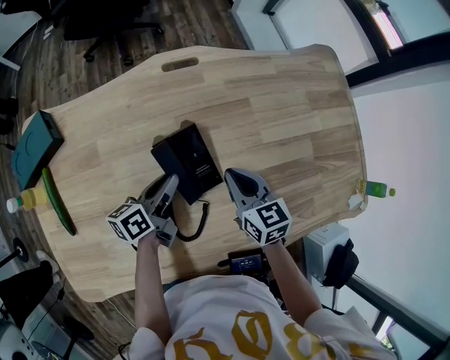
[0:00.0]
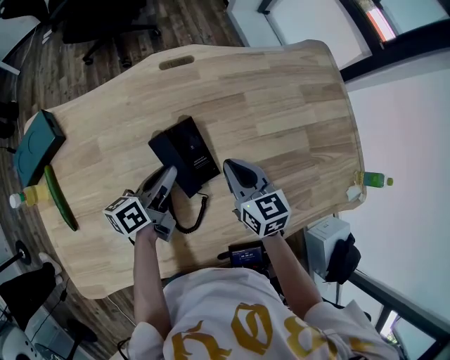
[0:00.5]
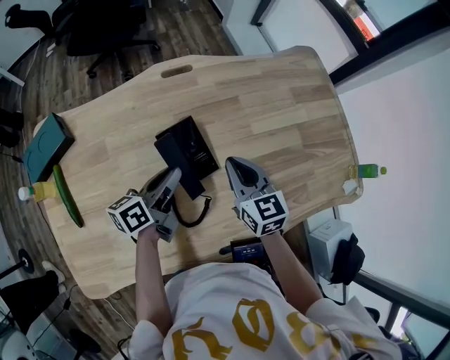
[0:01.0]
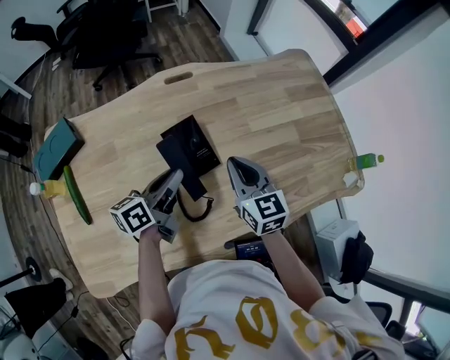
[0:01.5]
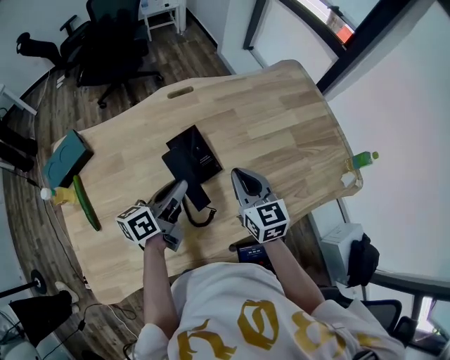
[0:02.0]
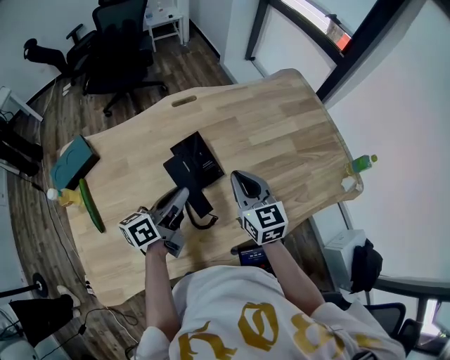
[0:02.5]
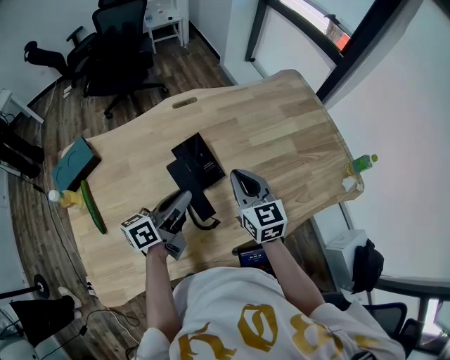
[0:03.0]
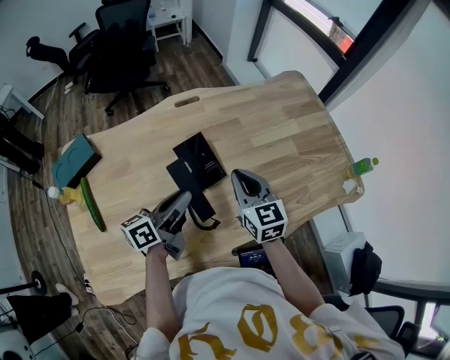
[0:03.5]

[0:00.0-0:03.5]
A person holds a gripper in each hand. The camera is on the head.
0:00.0 to 0:02.0: Both grippers travel together upward and backward, approximately 15 cm.
0:02.0 to 0:03.5: The grippers move only a little.

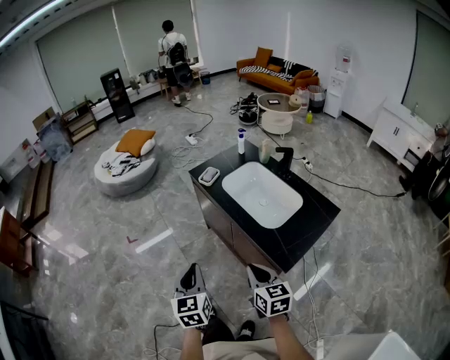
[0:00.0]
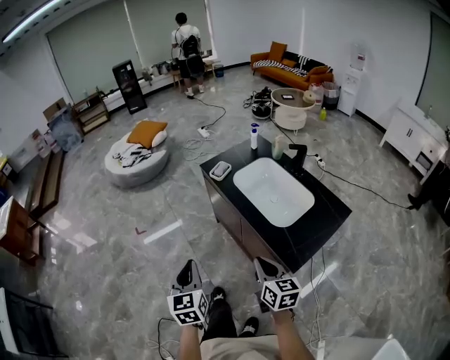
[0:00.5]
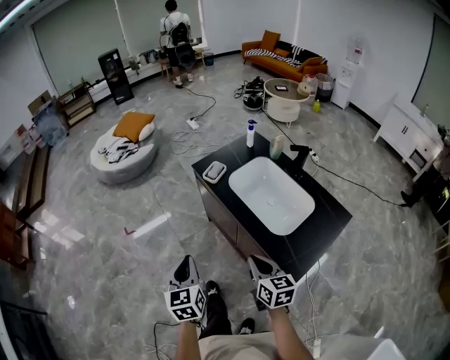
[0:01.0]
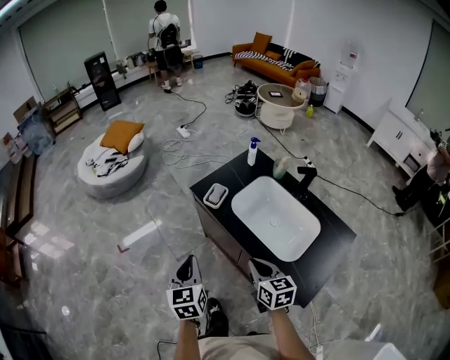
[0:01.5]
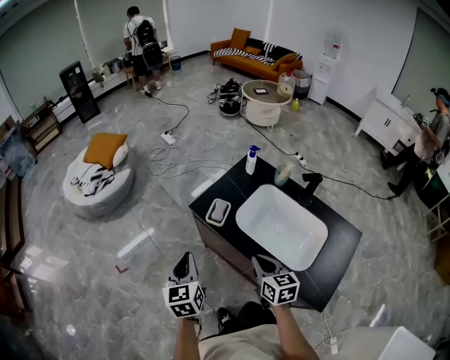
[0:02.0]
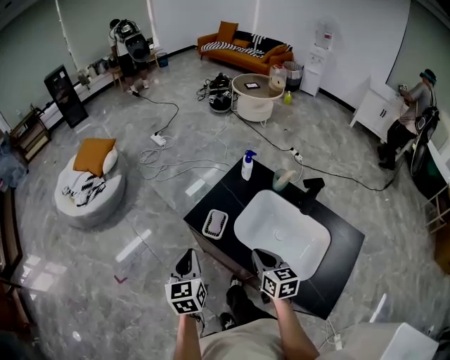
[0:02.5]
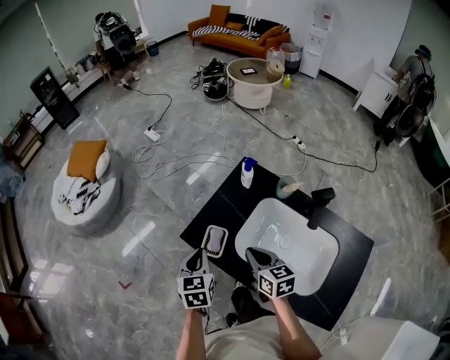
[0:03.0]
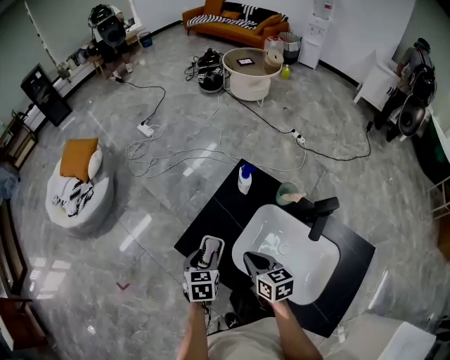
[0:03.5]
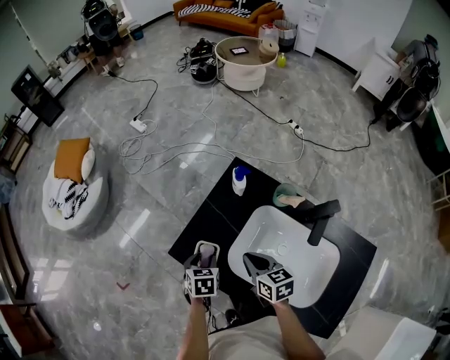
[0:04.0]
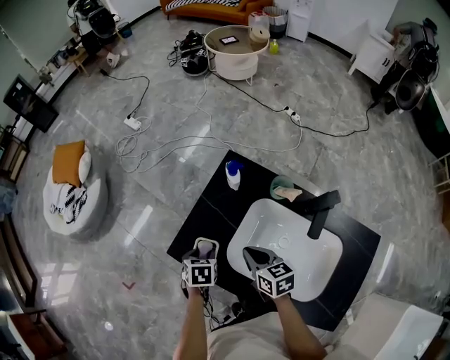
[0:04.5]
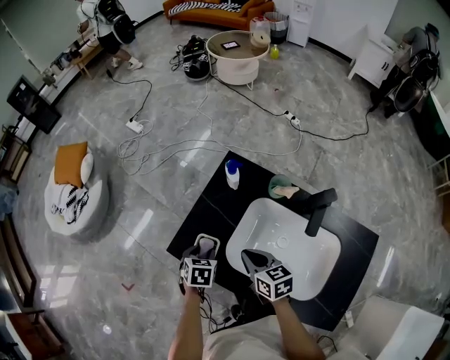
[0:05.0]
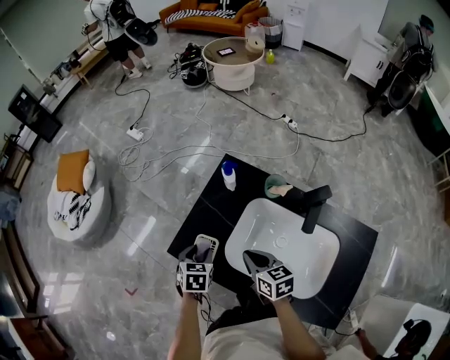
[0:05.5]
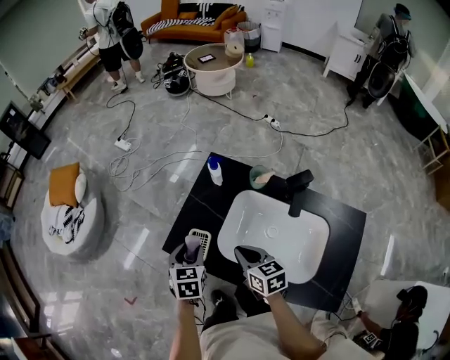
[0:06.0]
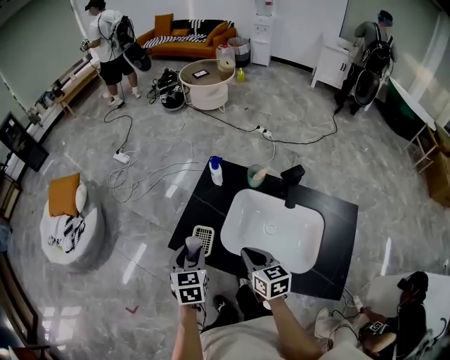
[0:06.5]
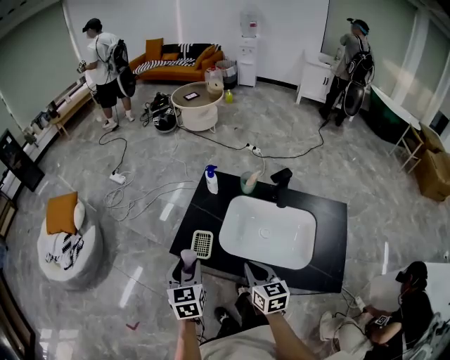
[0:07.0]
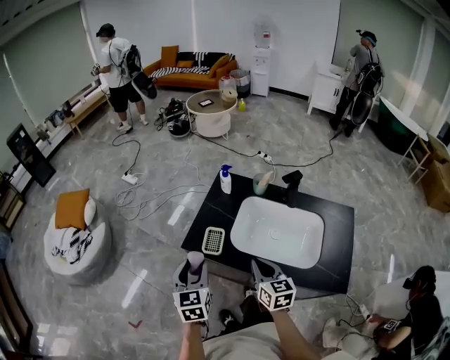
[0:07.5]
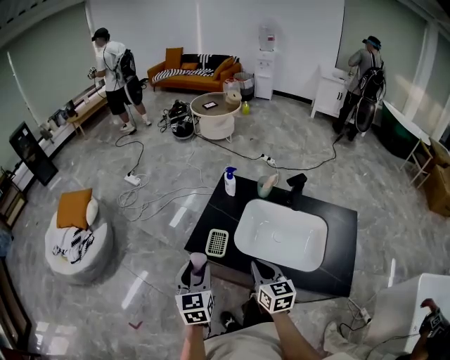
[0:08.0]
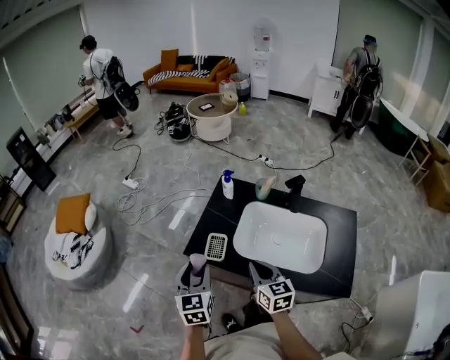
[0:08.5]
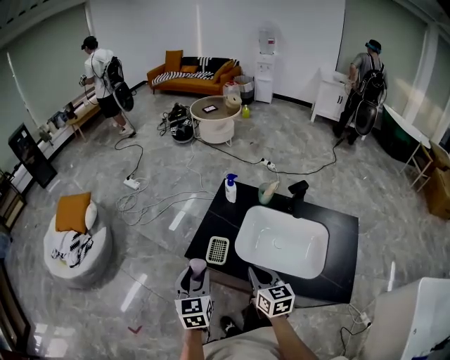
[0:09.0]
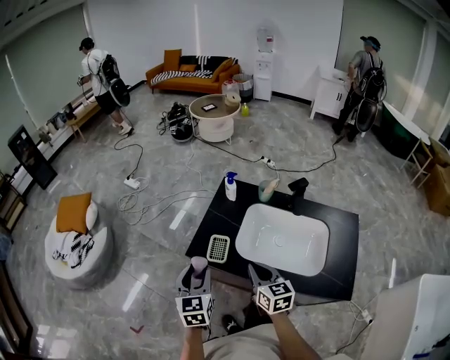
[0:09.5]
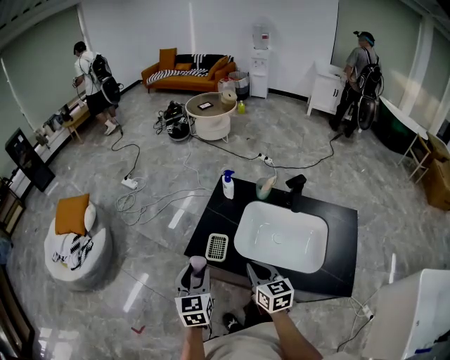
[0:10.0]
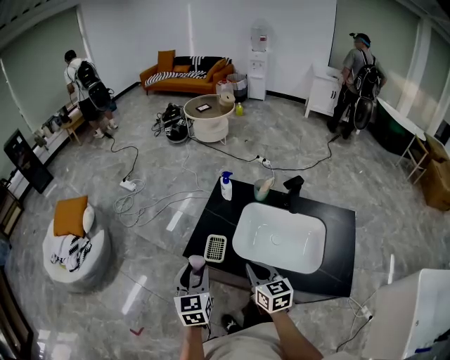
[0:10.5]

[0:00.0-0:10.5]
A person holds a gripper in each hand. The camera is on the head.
0:00.0 to 0:02.0: The grippers both shift forward by approximately 30 cm.
0:02.0 to 0:04.0: The left gripper goes approximately 30 cm downward, forward and to the right, points its fingers some 40 degrees further downward, and opens; the right gripper moves forward and downward, some 20 cm.
0:04.0 to 0:06.5: The left gripper shifts approximately 15 cm upward, and rotates about 30 degrees. The right gripper is displaced backward by approximately 5 cm.
0:06.5 to 0:08.5: The left gripper heads backward, covering some 5 cm.
0:08.5 to 0:10.5: Both grippers stay put.

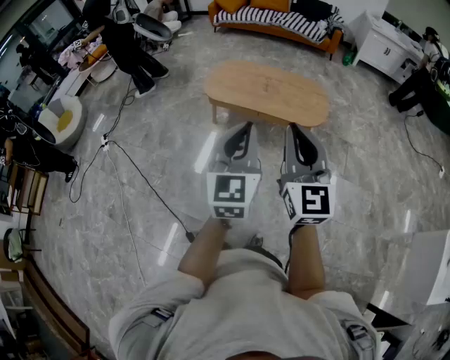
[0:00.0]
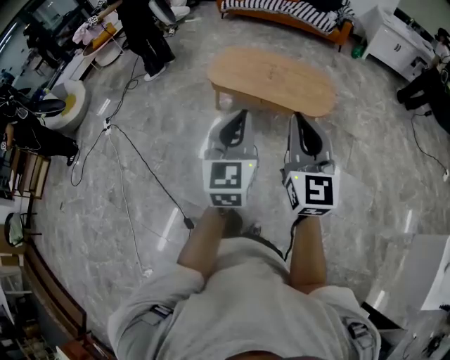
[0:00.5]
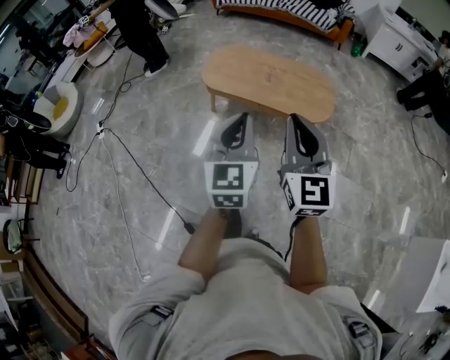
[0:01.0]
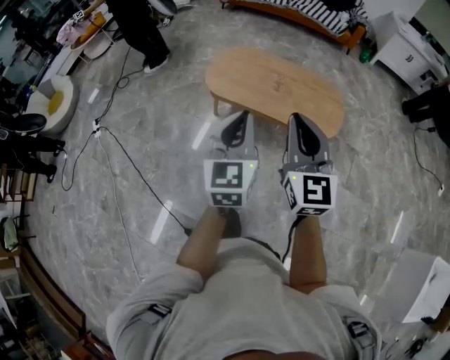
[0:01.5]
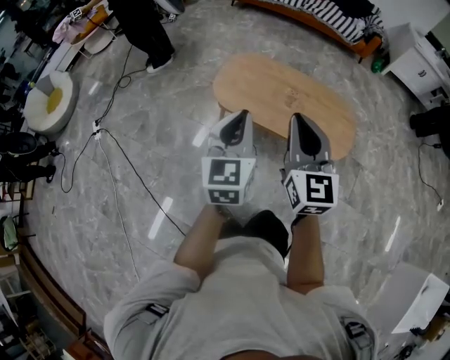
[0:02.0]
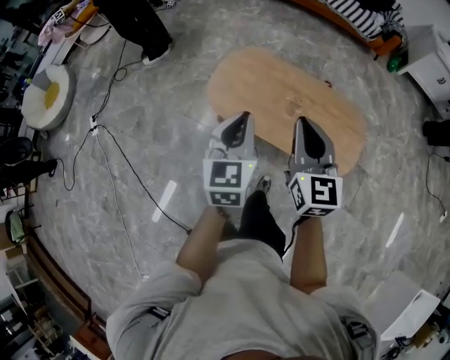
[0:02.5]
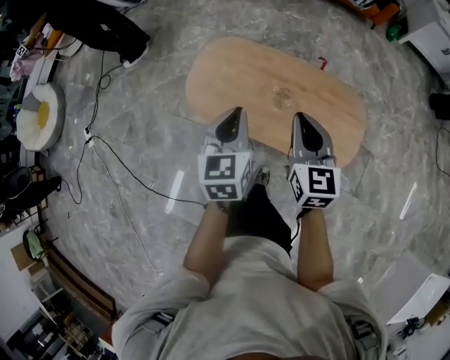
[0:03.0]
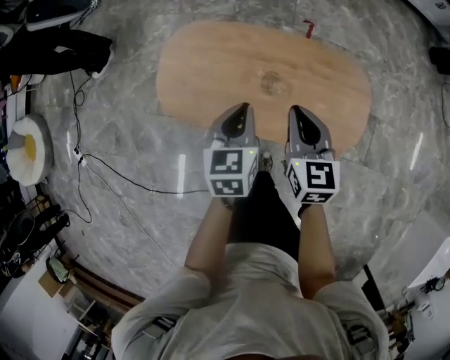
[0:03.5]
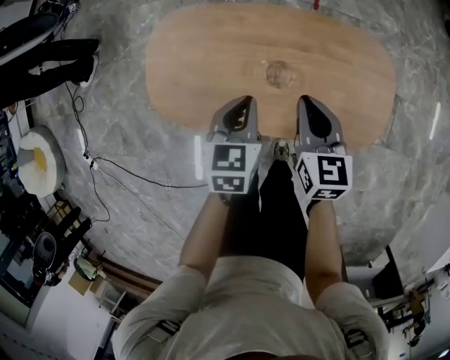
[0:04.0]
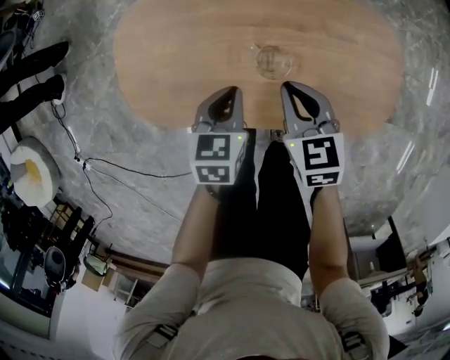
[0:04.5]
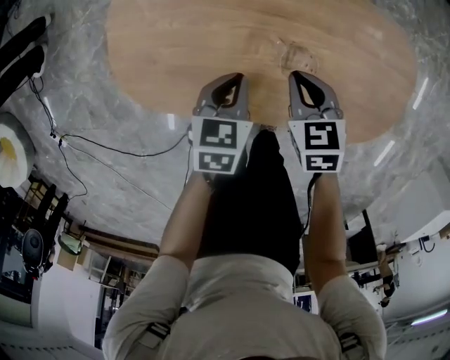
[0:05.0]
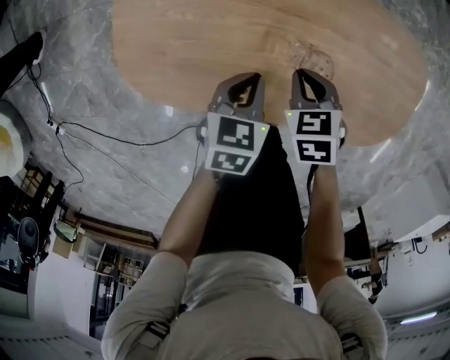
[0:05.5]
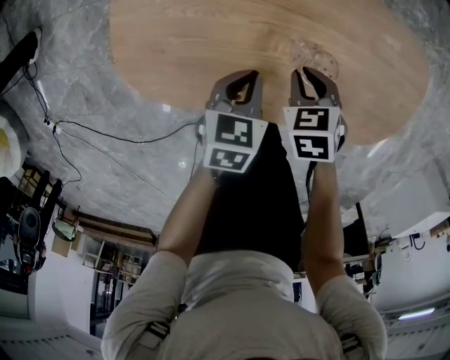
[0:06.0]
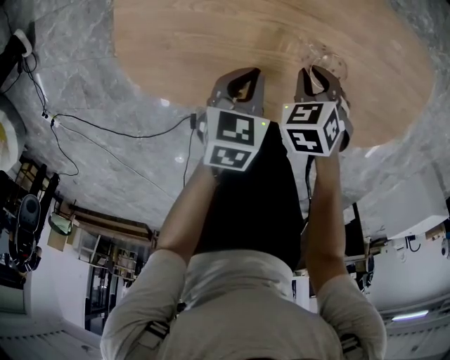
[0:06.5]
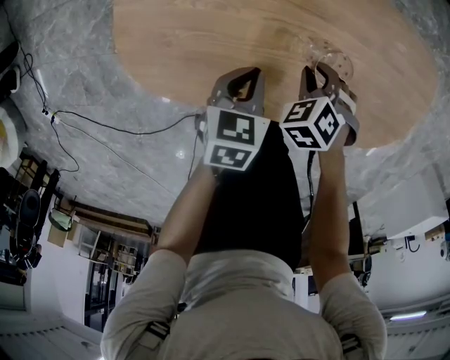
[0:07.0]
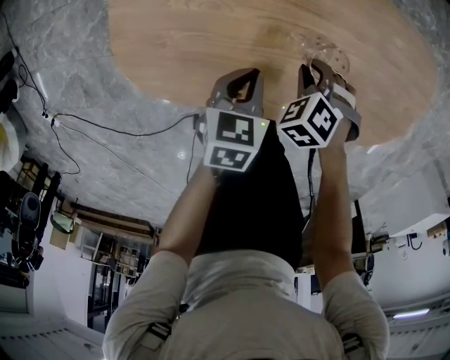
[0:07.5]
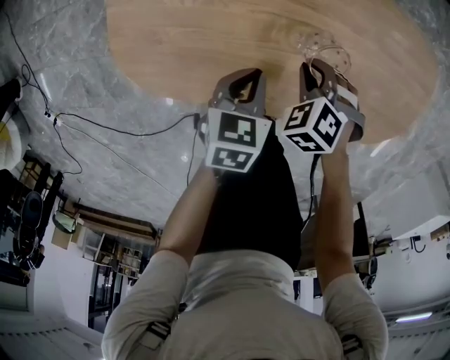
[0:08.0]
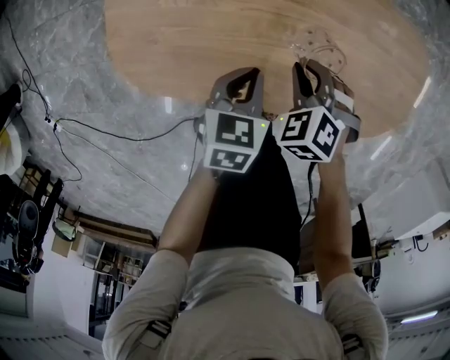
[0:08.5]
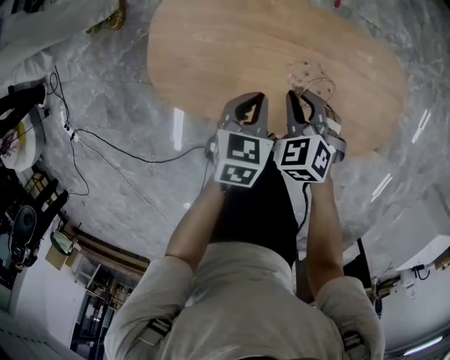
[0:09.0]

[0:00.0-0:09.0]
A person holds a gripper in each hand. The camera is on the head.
0:00.0 to 0:02.0: The two grippers go about 40 cm forward.
0:02.0 to 0:04.5: The two grippers travel together, forward, approximately 40 cm. The grippers both shift downward by roughly 50 cm. The left gripper tips its fingers downward by about 40 degrees. The right gripper points its fingers approximately 40 degrees further downward.
0:04.5 to 0:07.0: The right gripper shifts about 15 cm downward, and tilts its fingers roughly 30 degrees downward; the left gripper shifts some 10 cm downward.
0:07.0 to 0:09.0: Both grippers travel together upward, roughly 15 cm. The right gripper changes its angle by approximately 20 degrees.

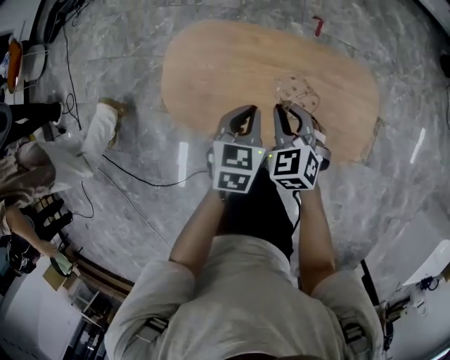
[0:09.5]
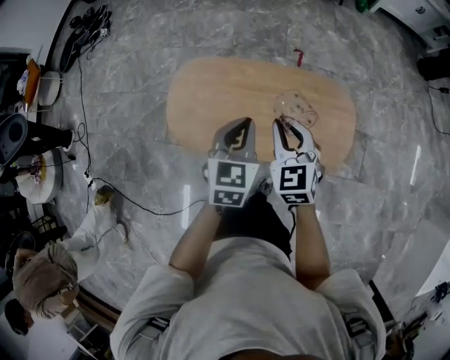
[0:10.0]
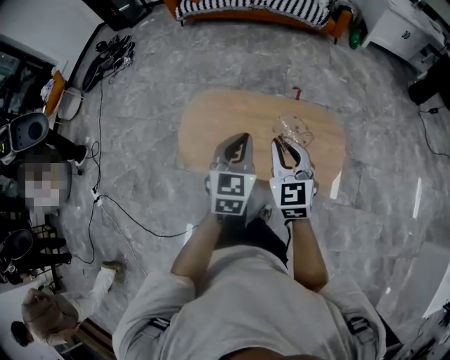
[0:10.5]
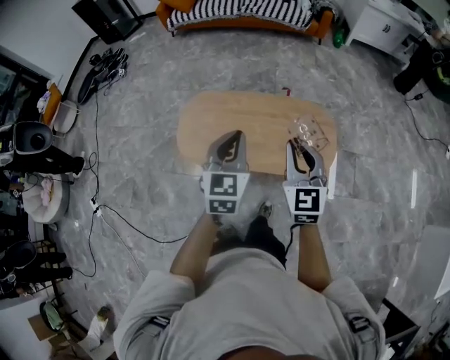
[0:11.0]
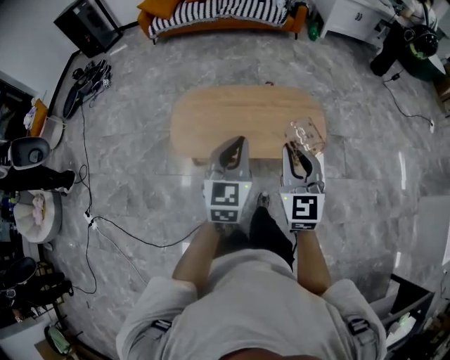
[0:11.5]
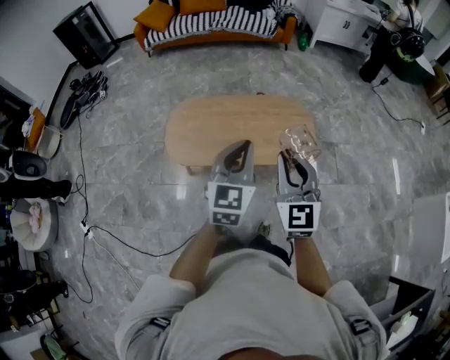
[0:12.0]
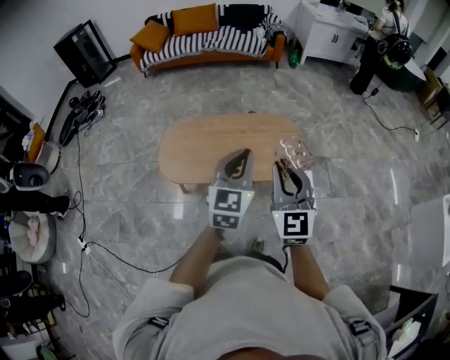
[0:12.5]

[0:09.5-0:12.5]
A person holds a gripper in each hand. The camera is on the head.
0:09.5 to 0:11.0: The grippers both shift upward and backward by approximately 35 cm. The left gripper changes its angle by roughly 30 degrees. Meanwhile the right gripper angles its fingers upward, by roughly 30 degrees.
0:11.0 to 0:12.5: The left gripper travels backward, to the right and upward by roughly 15 cm; the right gripper goes approximately 20 cm backward and upward.
